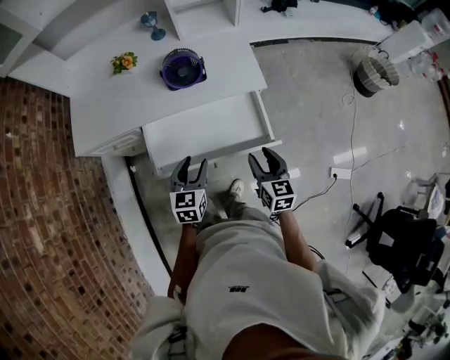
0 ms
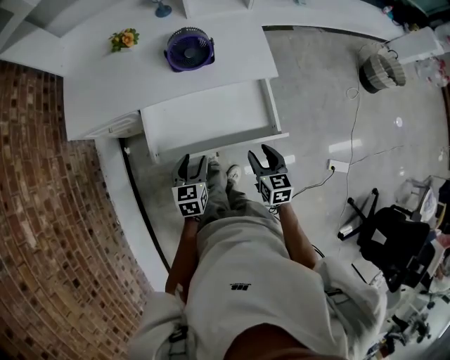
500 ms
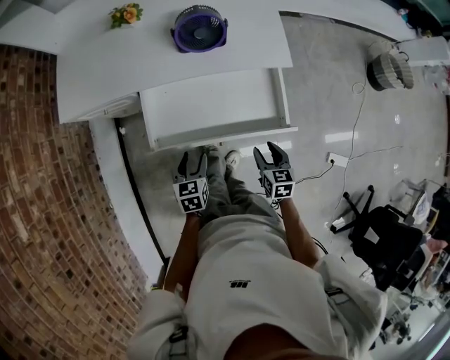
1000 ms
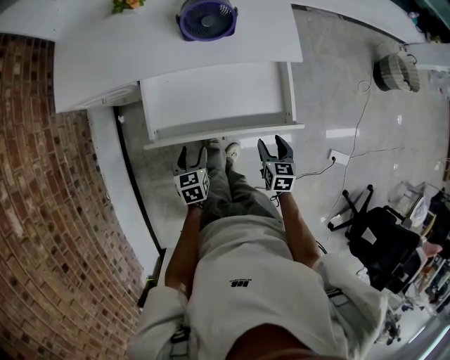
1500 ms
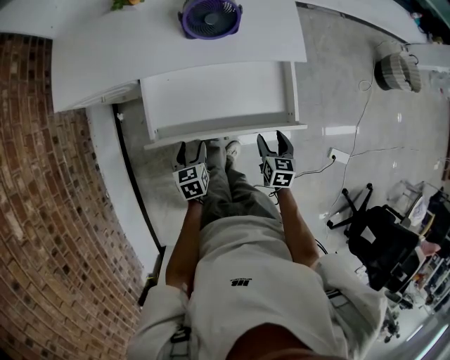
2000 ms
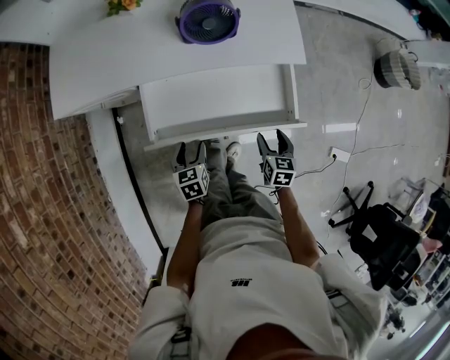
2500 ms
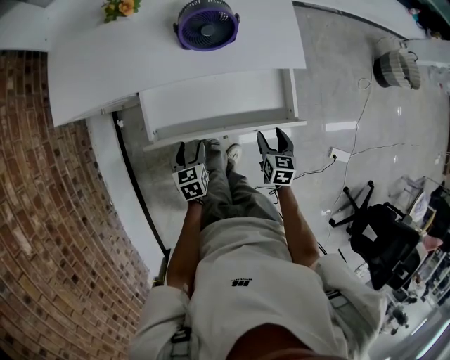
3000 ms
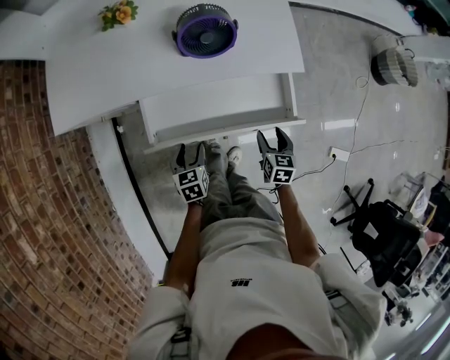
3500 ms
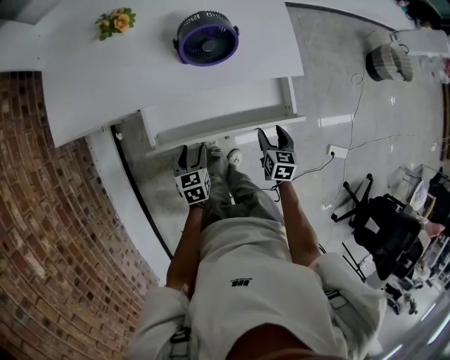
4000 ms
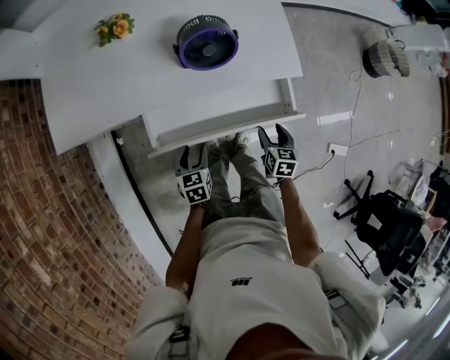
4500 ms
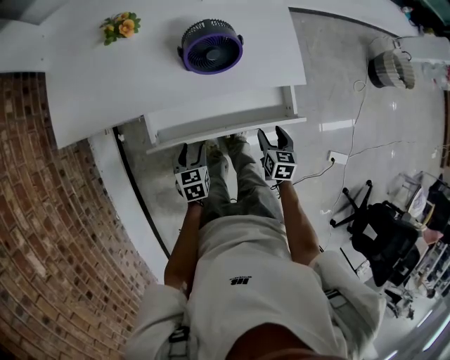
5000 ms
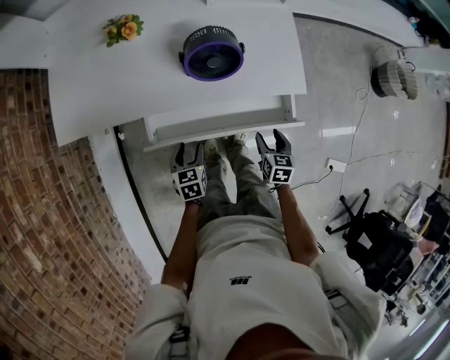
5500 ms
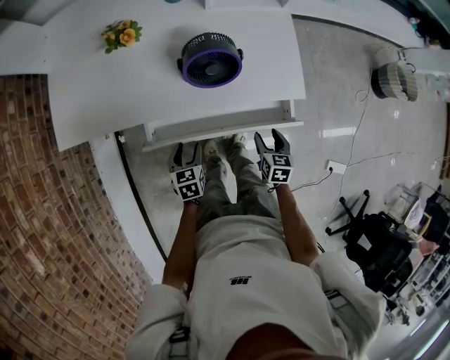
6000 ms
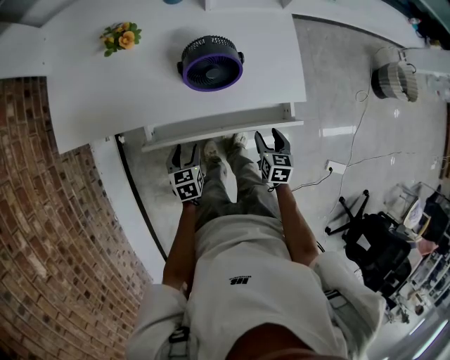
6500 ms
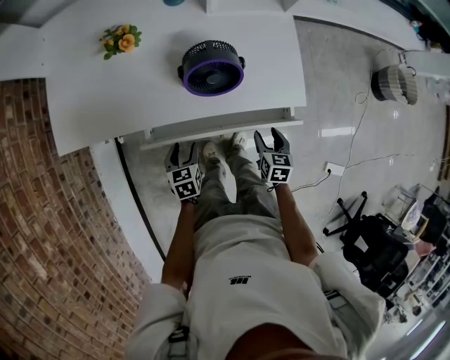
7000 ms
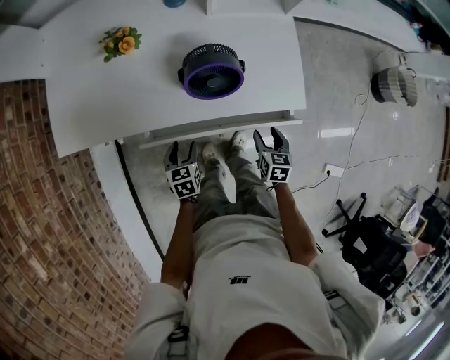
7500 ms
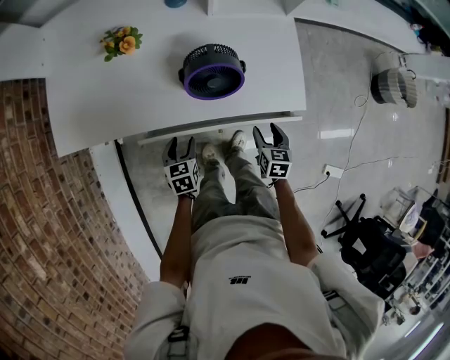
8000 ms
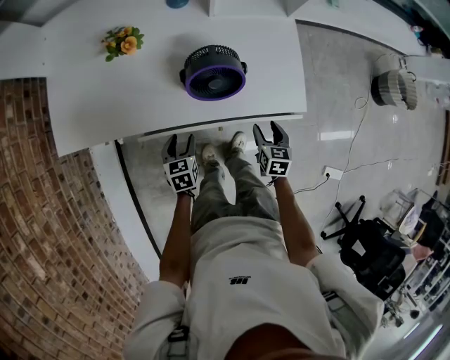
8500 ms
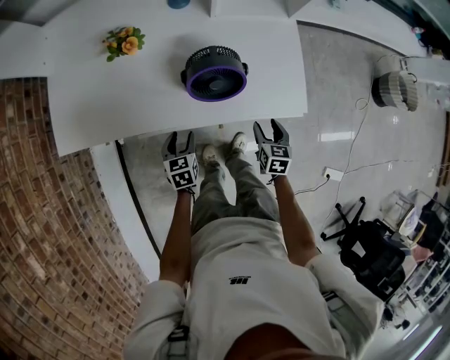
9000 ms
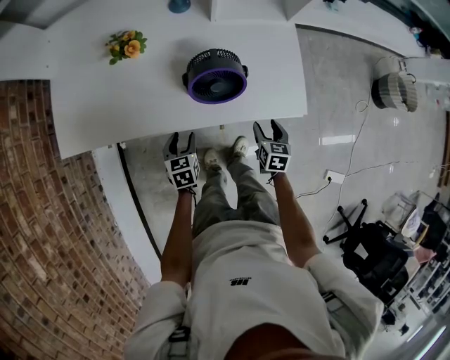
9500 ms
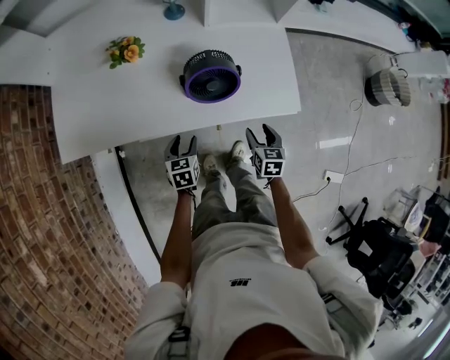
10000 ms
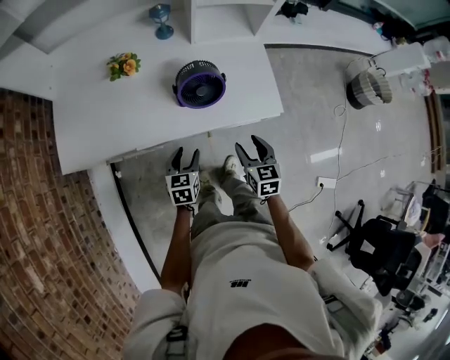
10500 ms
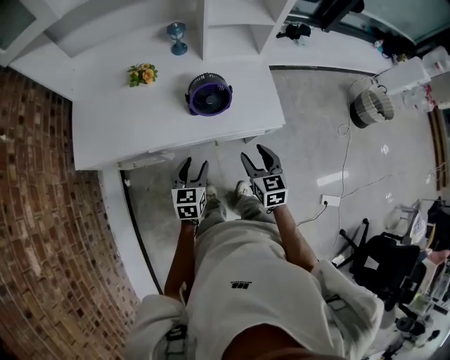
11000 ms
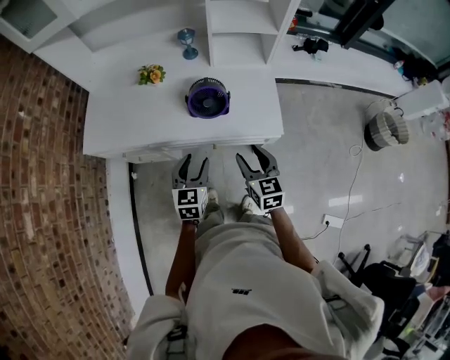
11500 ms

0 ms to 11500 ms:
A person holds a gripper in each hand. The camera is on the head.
0 ms to 2000 ms: The right gripper shifts roughly 20 cm downward, and changes its angle by roughly 20 degrees. The left gripper heads downward and to the left, covering roughly 20 cm, and changes its angle by approximately 30 degrees.
2000 ms to 4000 ms: Both grippers move forward, some 10 cm.
4000 ms to 6000 ms: The grippers both shift forward by some 5 cm.
6000 ms to 7500 ms: The grippers make only small movements.
7500 ms to 9500 ms: The grippers make only small movements.
9500 ms to 11500 ms: The right gripper goes about 25 cm upward, and changes its angle by roughly 30 degrees. The left gripper shifts roughly 25 cm upward and to the right, and rotates about 30 degrees.

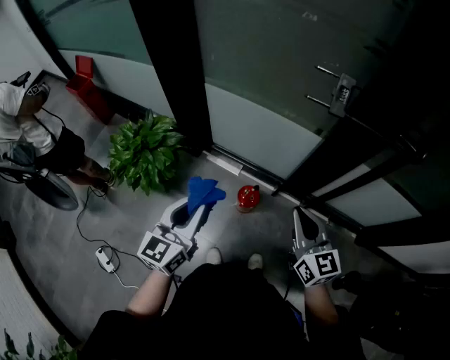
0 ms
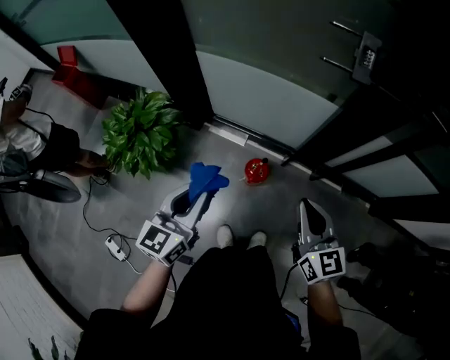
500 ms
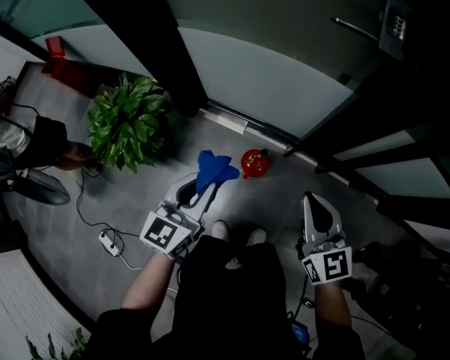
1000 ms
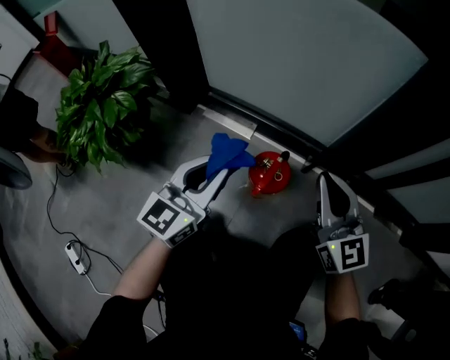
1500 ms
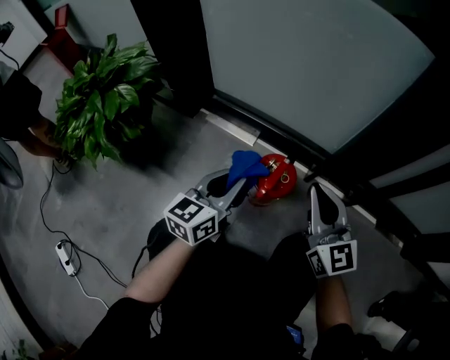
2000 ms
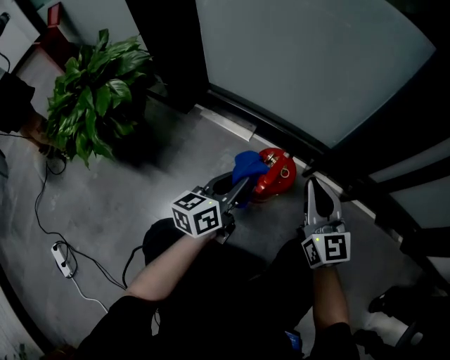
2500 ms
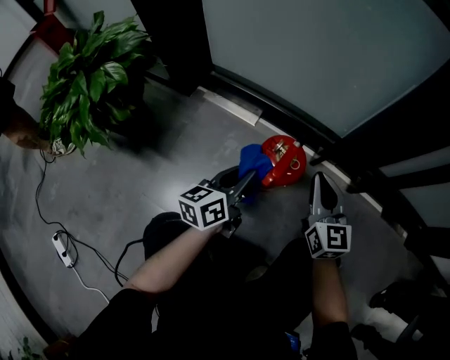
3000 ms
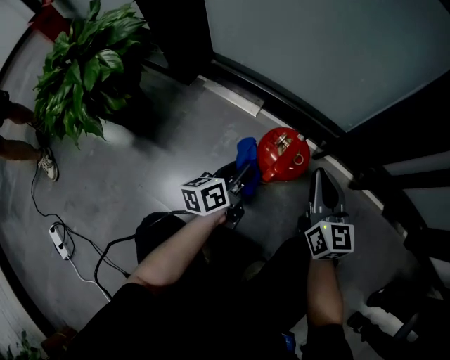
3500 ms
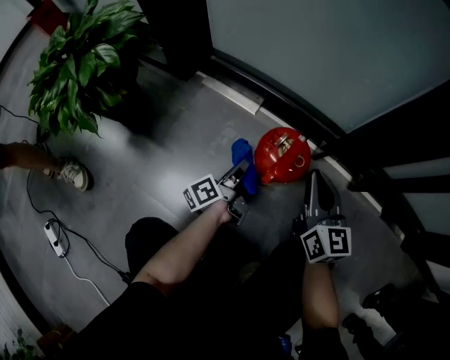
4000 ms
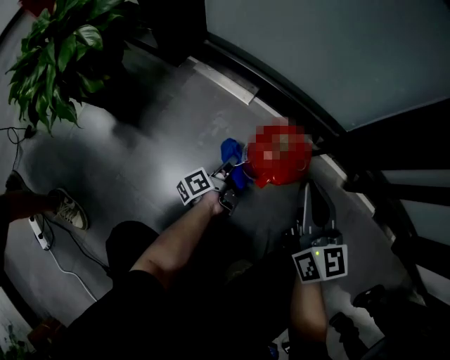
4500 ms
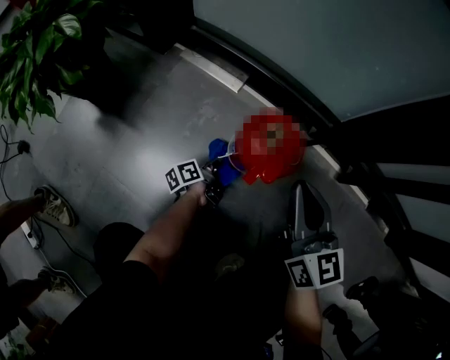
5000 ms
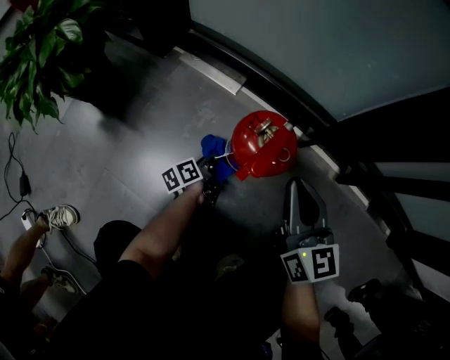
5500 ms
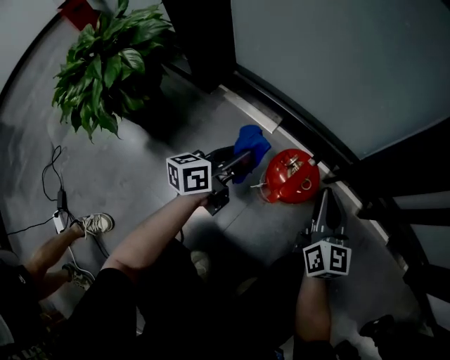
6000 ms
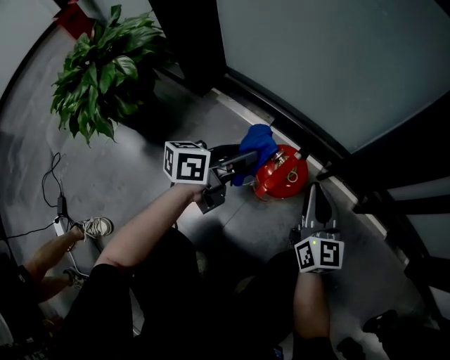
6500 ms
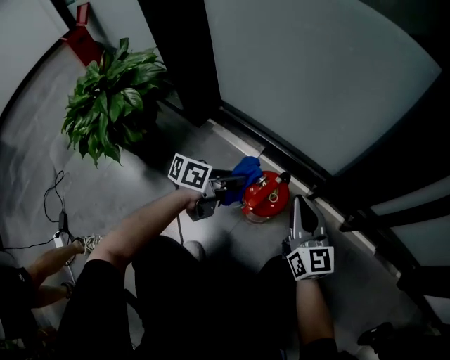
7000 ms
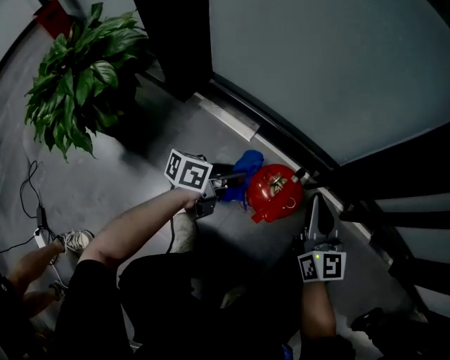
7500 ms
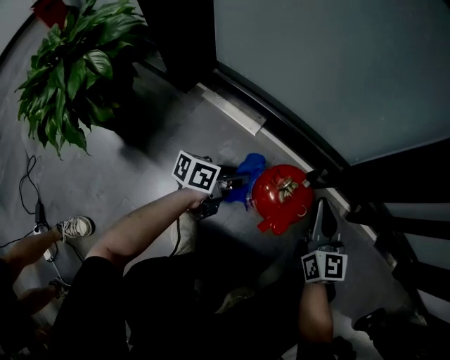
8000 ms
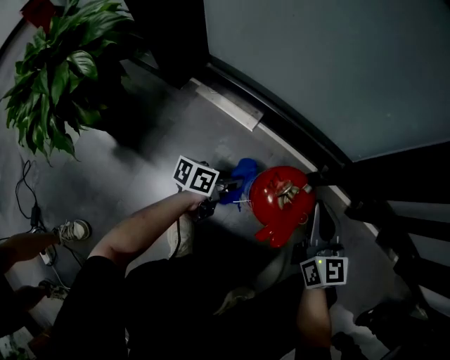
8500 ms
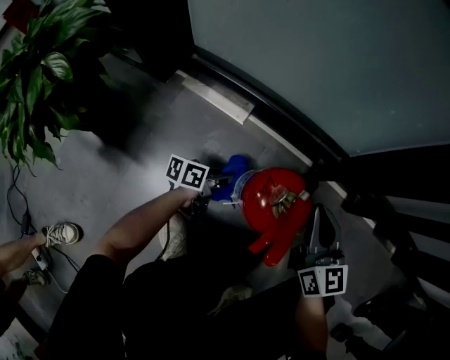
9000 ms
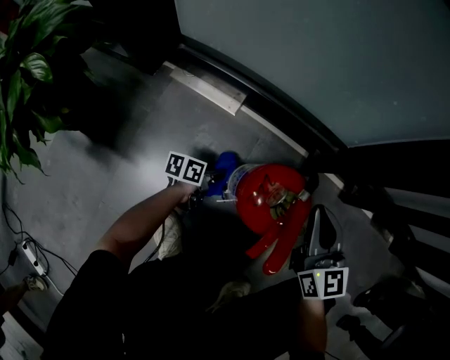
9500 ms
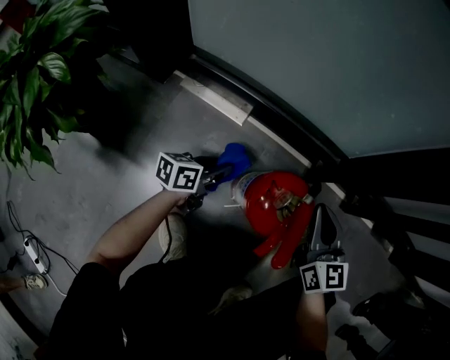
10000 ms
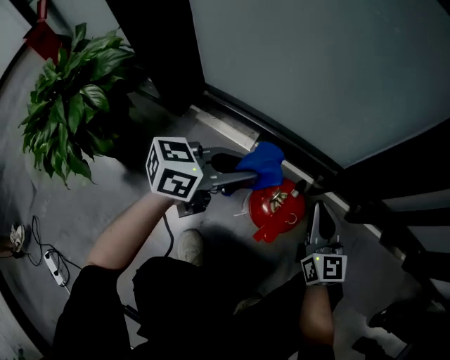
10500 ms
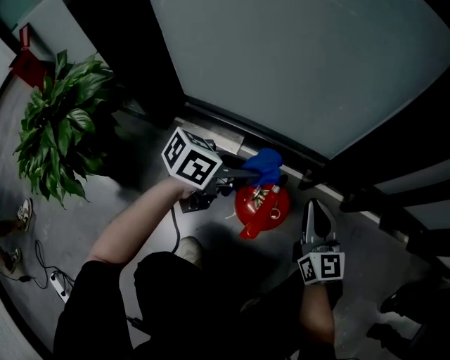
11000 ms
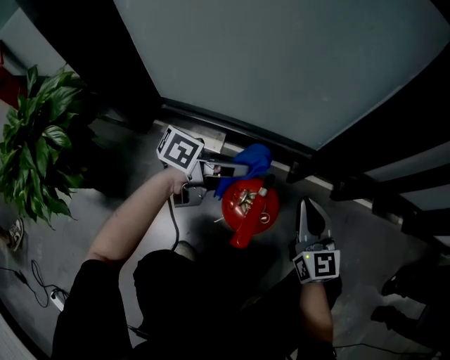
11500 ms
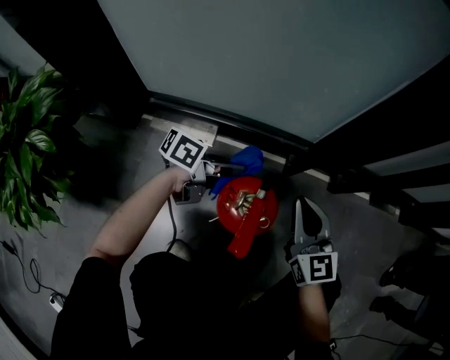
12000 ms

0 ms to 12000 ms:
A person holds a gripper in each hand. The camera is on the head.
0 ms to 2000 ms: Both grippers travel together downward, some 40 cm.
2000 ms to 4000 ms: The left gripper heads downward, covering approximately 20 cm, and twists some 60 degrees counterclockwise, seen from behind. Meanwhile the right gripper heads downward, covering about 10 cm.
4000 ms to 6000 ms: The left gripper is displaced upward by about 10 cm, and rotates about 40 degrees.
6000 ms to 8000 ms: The left gripper goes approximately 10 cm downward and to the right, and turns by about 30 degrees.
8000 ms to 10000 ms: The left gripper moves some 20 cm downward and comes back.
10000 ms to 12000 ms: The left gripper goes roughly 15 cm upward, forward and to the right, and turns by some 30 degrees.

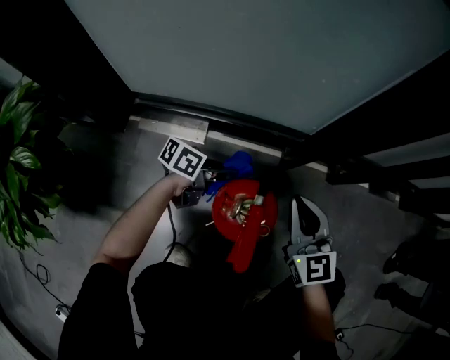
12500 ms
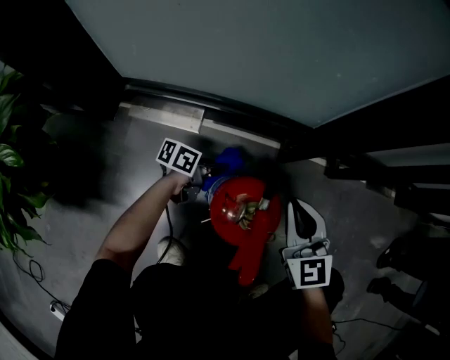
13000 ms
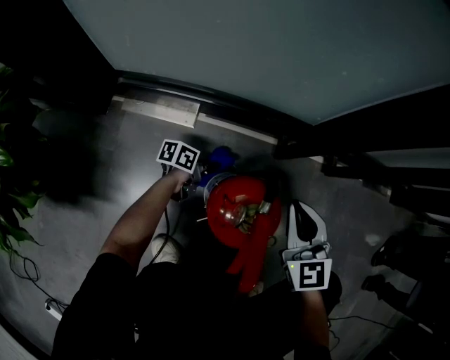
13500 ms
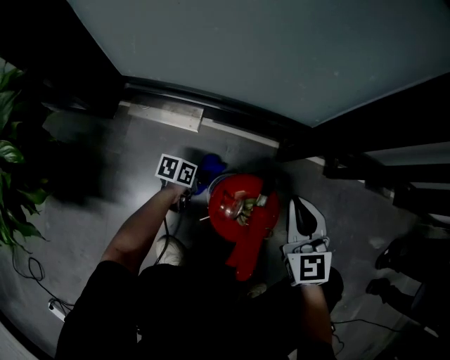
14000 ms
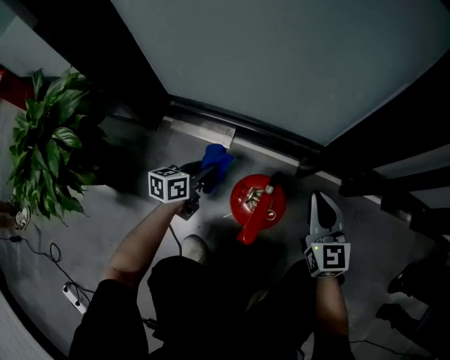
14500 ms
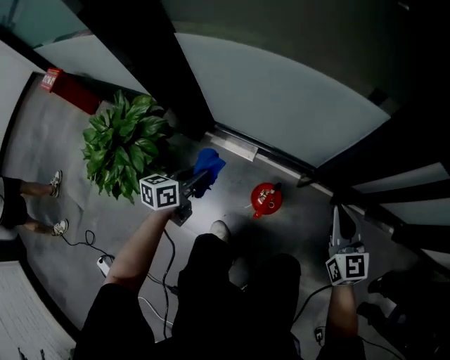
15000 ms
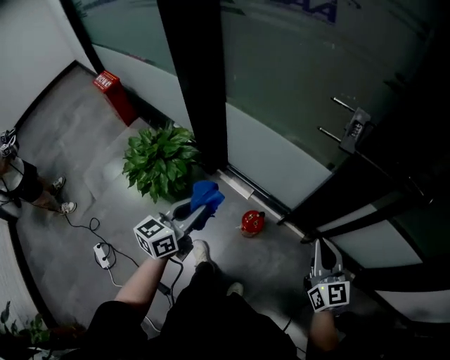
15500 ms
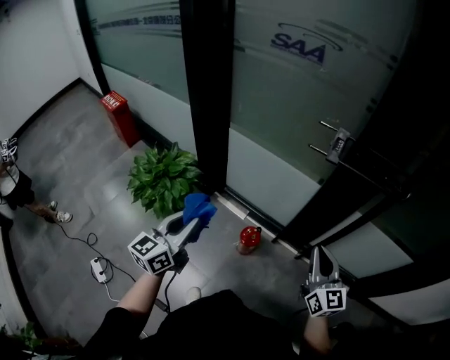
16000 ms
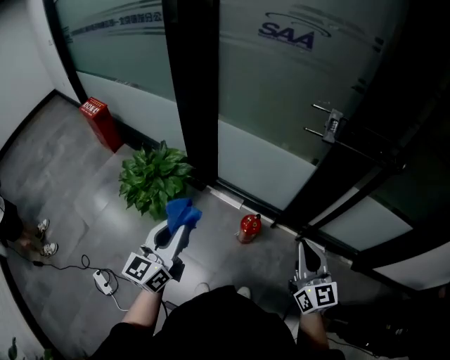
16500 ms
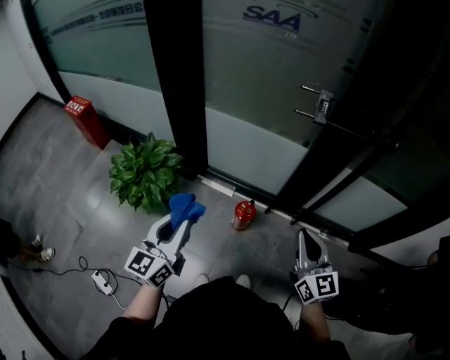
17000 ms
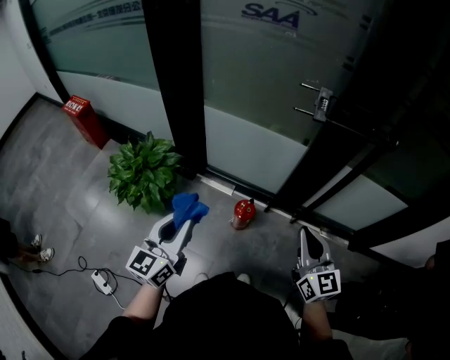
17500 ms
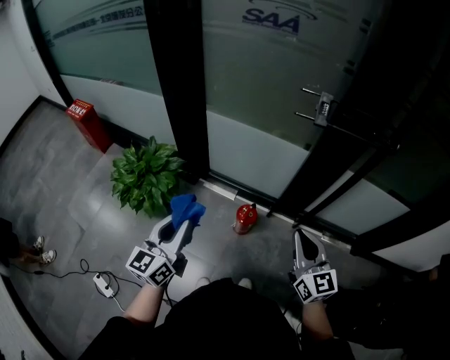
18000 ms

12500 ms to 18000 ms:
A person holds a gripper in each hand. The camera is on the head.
12500 ms to 14500 ms: The left gripper goes approximately 15 cm to the left and backward, moves about 15 cm downward and comes back, and rotates some 40 degrees.
14500 ms to 16000 ms: Both grippers move upward, about 70 cm. The left gripper changes its angle by about 40 degrees, while the right gripper swivels about 20 degrees.
16000 ms to 18000 ms: The left gripper ends up some 5 cm from where it was; the right gripper shifts some 10 cm to the left and backward.
